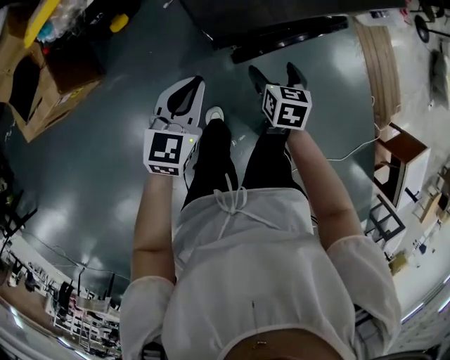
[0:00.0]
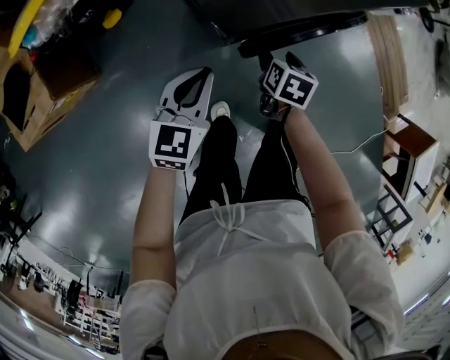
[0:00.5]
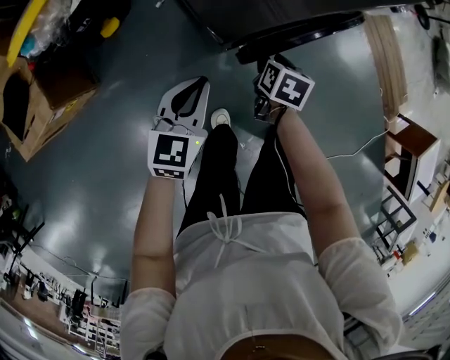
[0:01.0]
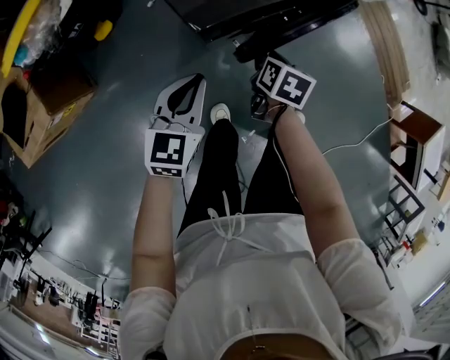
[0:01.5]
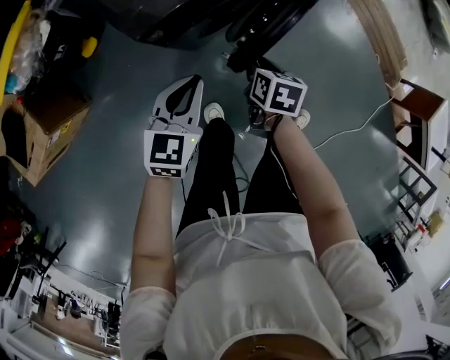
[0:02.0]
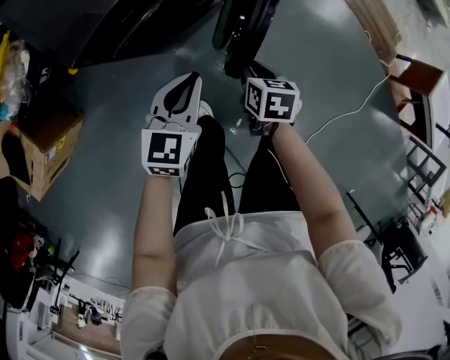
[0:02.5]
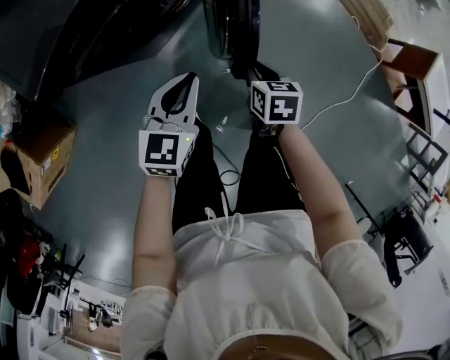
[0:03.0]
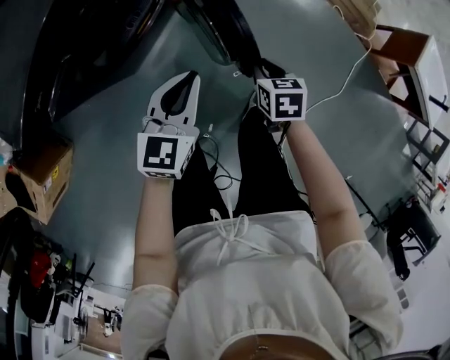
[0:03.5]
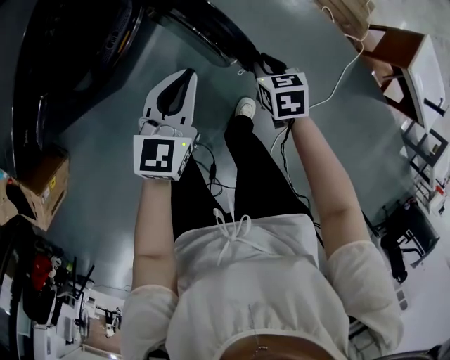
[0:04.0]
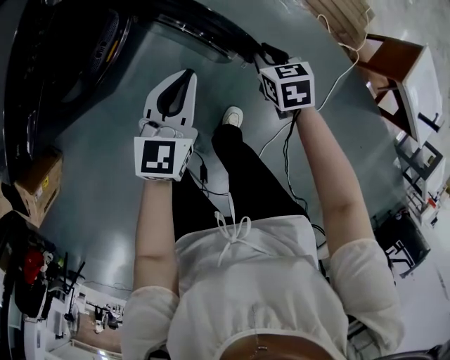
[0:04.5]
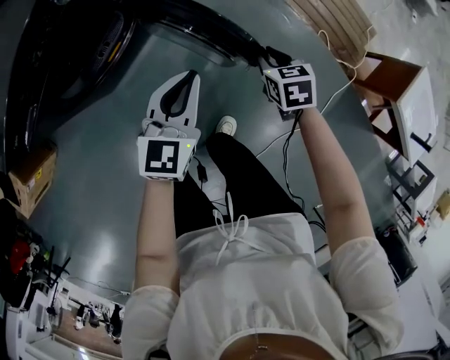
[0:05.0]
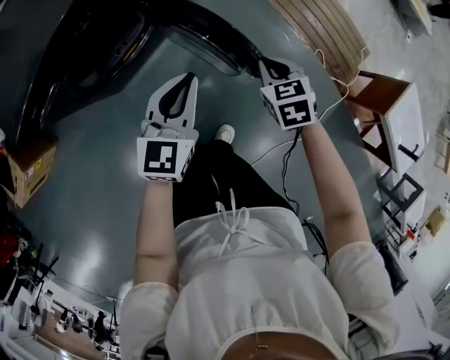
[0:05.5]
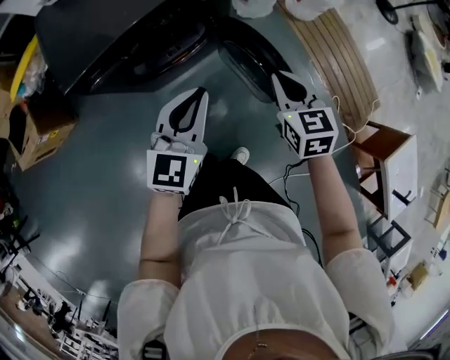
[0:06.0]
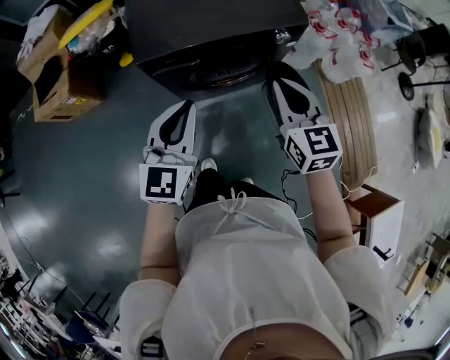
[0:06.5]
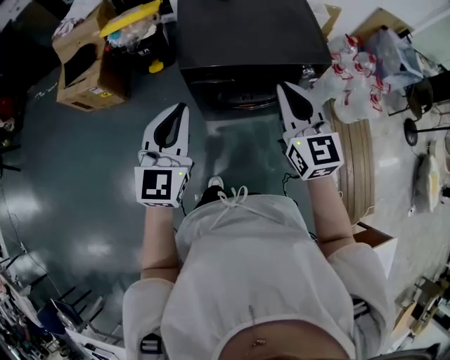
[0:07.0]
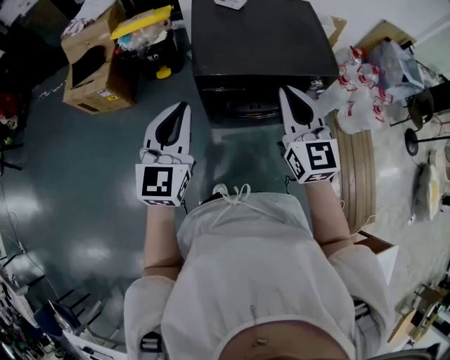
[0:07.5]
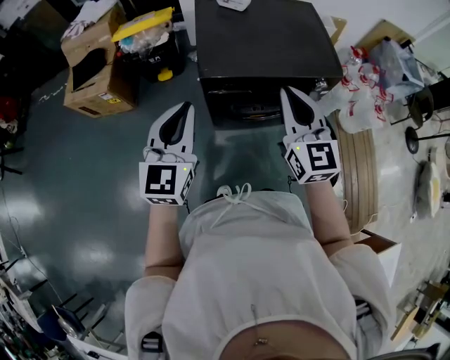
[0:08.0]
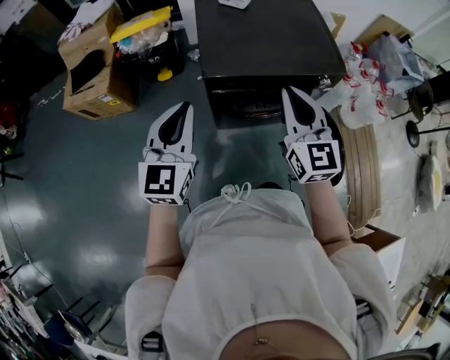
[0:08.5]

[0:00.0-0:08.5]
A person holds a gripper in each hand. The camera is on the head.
0:00.0 to 0:02.0: The right gripper travels downward and to the right by some 10 cm, rotates roughly 30 degrees, and closes its fingers, while the left gripper shifts some 15 cm to the right and downward.
0:02.0 to 0:04.0: Both grippers are carried to the right, some 50 cm.
0:04.0 to 0:06.5: Both grippers travel together upward, about 35 cm. The right gripper tips its fingers upward by about 40 degrees, while the left gripper swivels roughly 50 degrees.
0:06.5 to 0:08.5: The left gripper is displaced to the left by some 20 cm, while the right gripper goes roughly 20 cm to the left and upward.

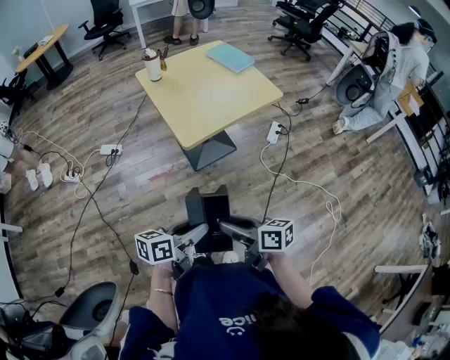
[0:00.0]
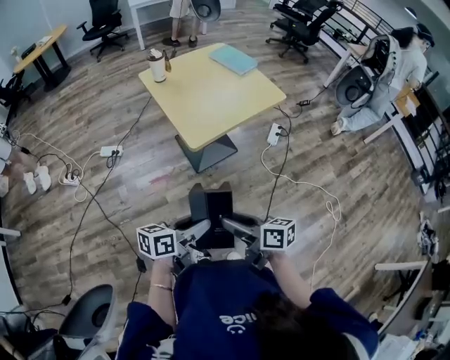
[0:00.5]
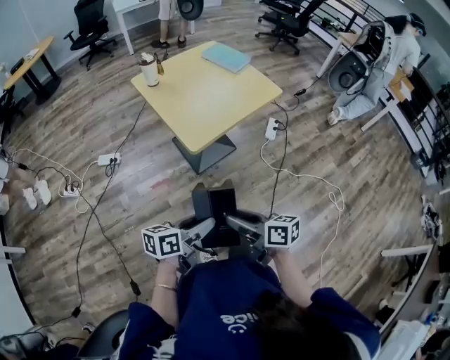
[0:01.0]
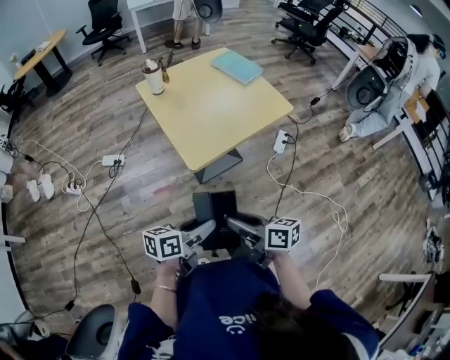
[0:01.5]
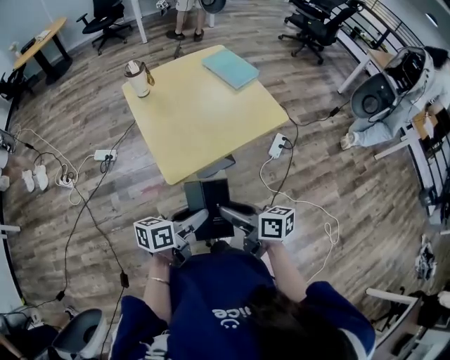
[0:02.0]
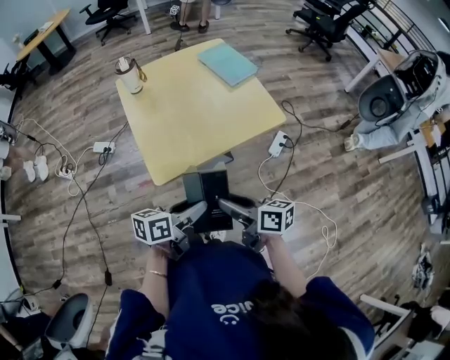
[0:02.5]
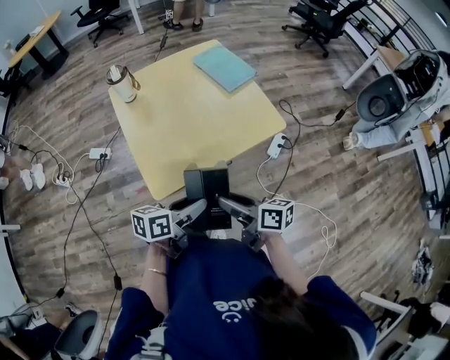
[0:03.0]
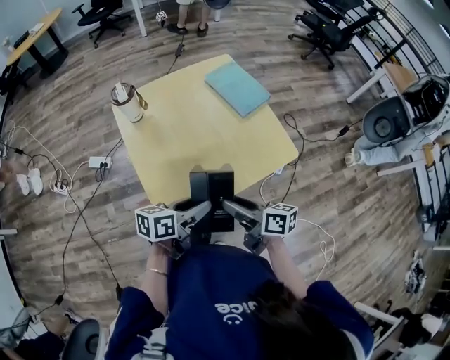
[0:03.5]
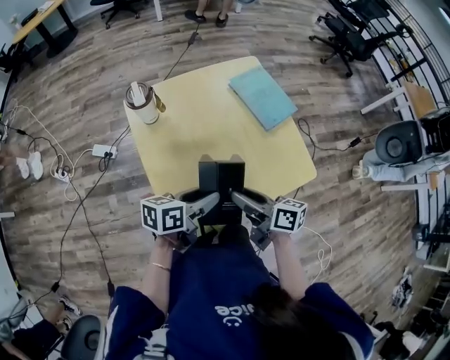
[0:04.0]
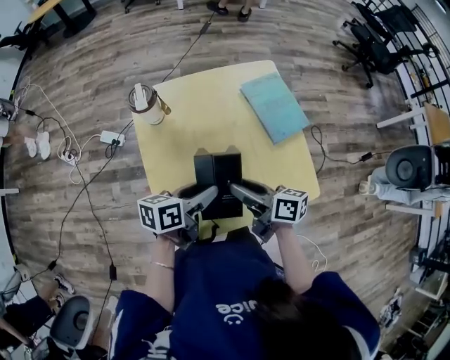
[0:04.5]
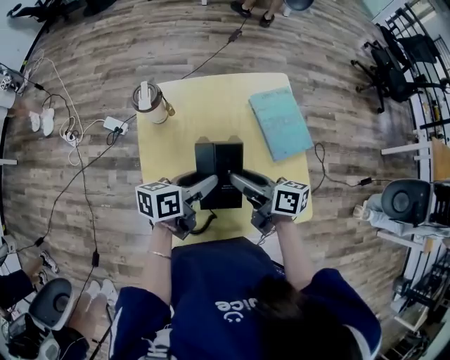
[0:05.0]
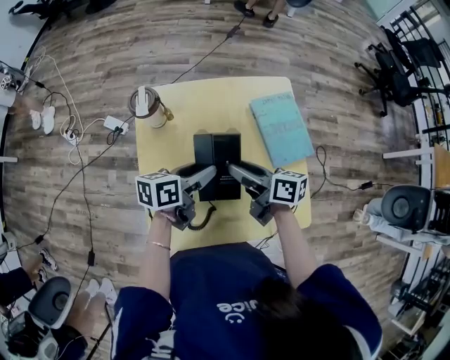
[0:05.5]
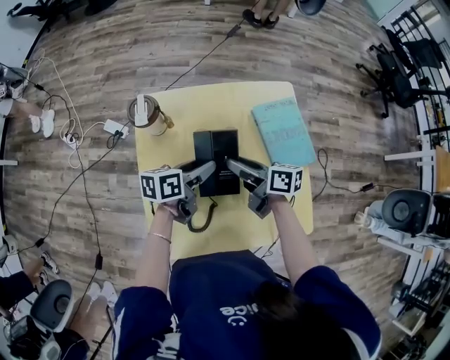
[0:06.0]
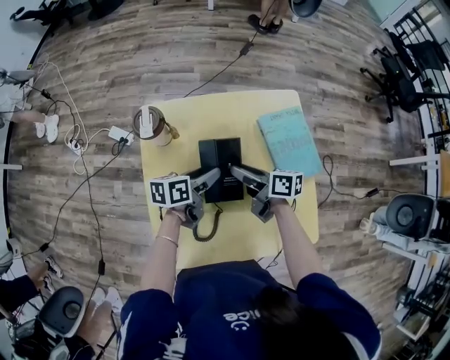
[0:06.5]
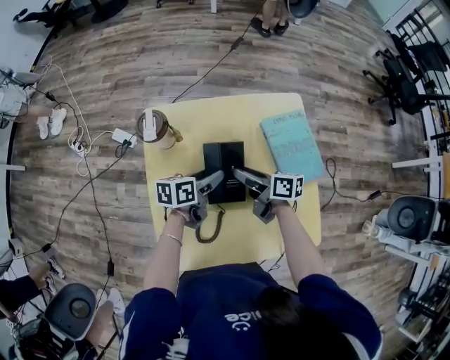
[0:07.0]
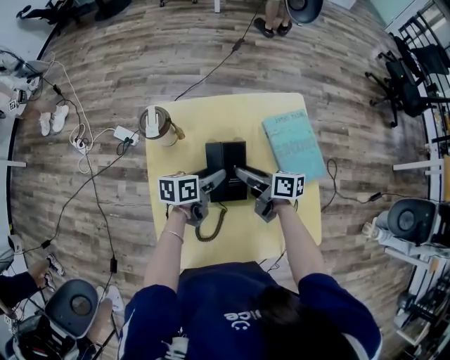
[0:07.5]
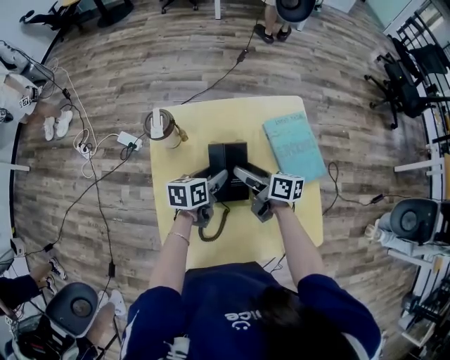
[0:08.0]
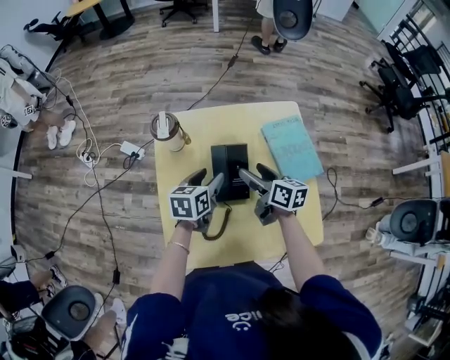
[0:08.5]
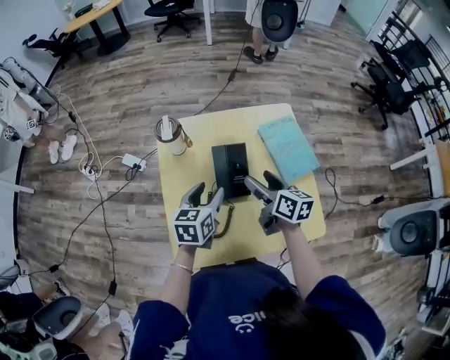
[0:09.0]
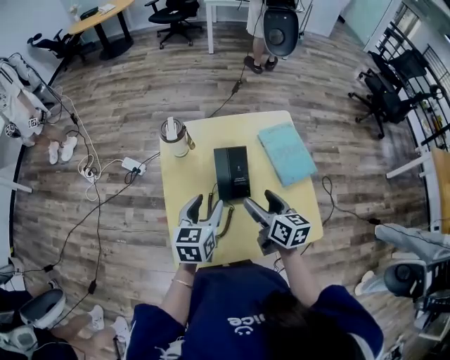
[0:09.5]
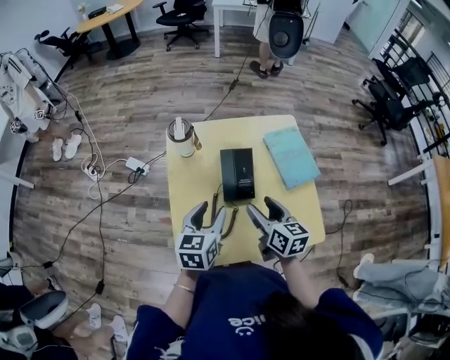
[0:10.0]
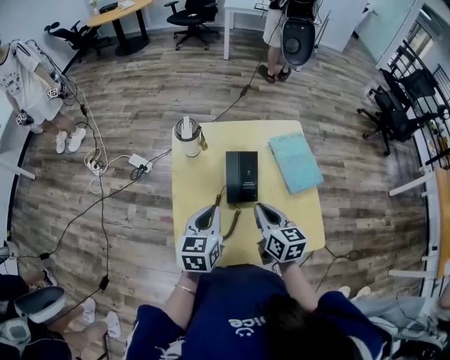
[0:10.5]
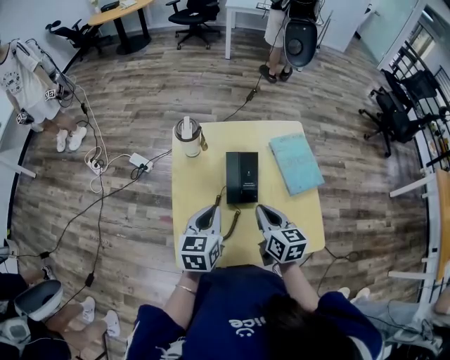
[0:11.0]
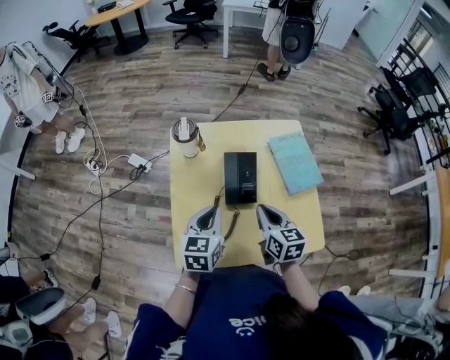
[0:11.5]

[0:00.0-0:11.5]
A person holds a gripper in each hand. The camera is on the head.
0:00.0 to 0:02.0: The grippers both shift forward by about 25 cm.
0:02.0 to 0:04.0: The grippers both shift forward by about 30 cm.
0:04.0 to 0:06.0: Both grippers travel together forward, some 20 cm. The left gripper changes its angle by about 20 degrees.
0:06.0 to 0:07.5: There are only small adjustments of the grippers.
0:07.5 to 0:09.5: The left gripper travels backward, upward and to the left by approximately 20 cm, and swivels roughly 40 degrees. The right gripper shifts some 15 cm backward and upward, changes its angle by approximately 30 degrees, and opens up.
0:09.5 to 0:11.5: The left gripper closes up, while the right gripper closes.

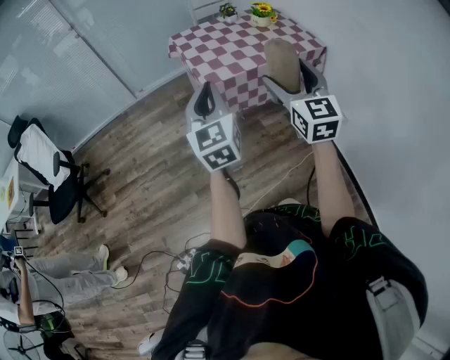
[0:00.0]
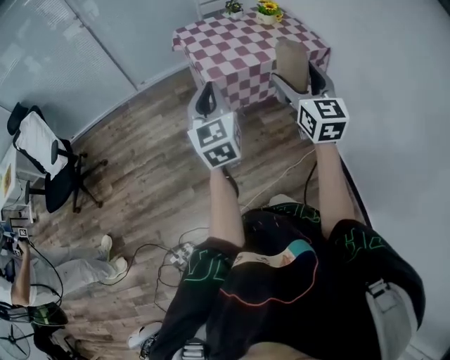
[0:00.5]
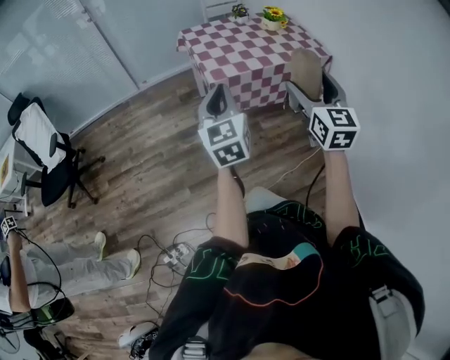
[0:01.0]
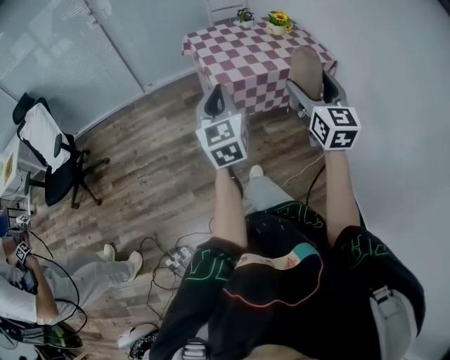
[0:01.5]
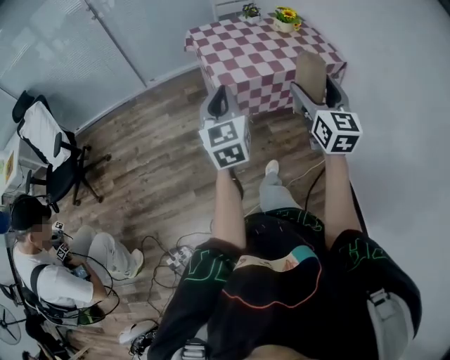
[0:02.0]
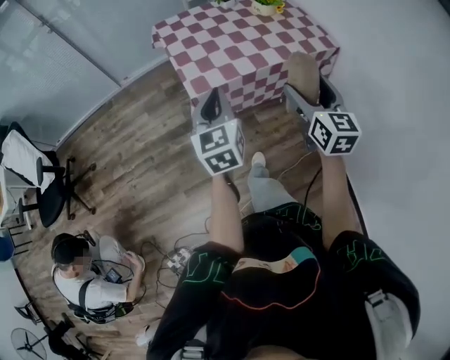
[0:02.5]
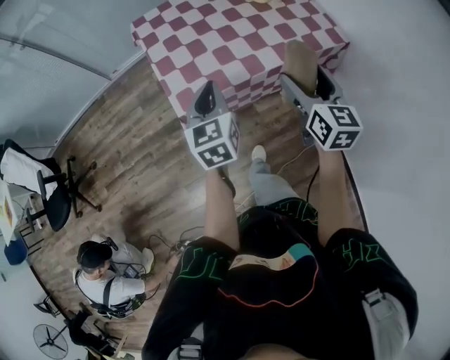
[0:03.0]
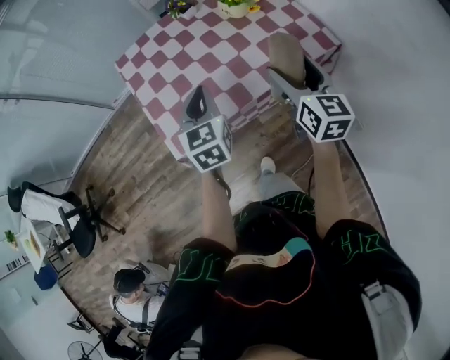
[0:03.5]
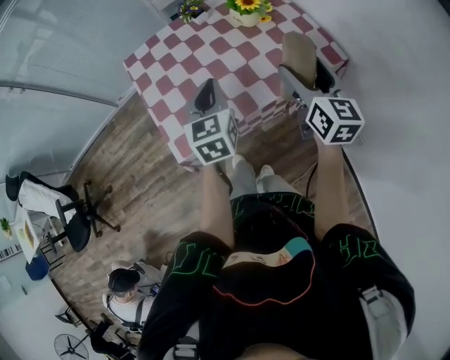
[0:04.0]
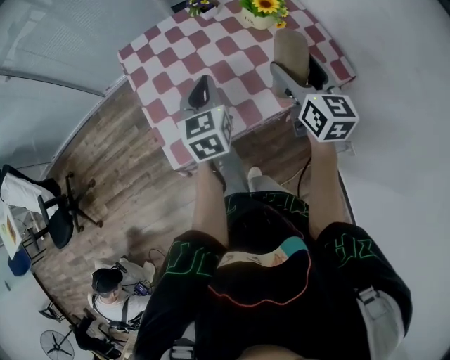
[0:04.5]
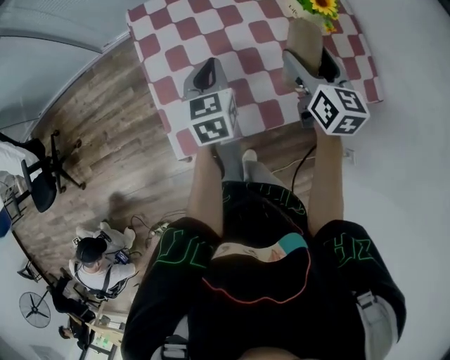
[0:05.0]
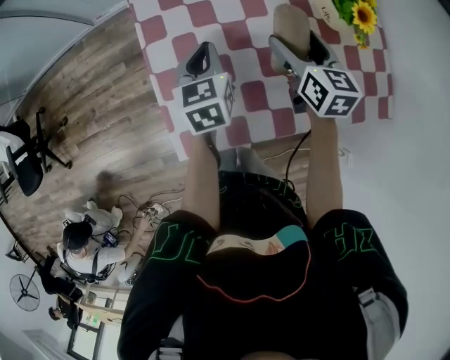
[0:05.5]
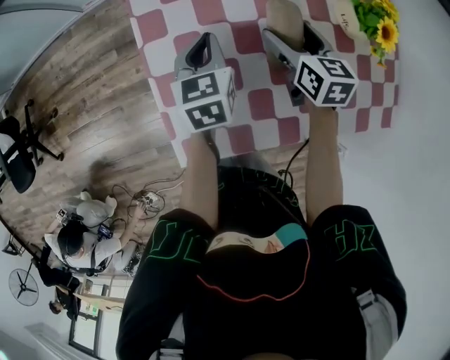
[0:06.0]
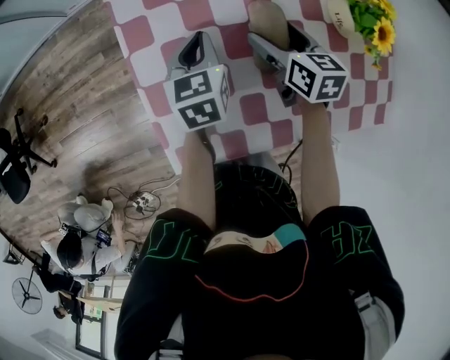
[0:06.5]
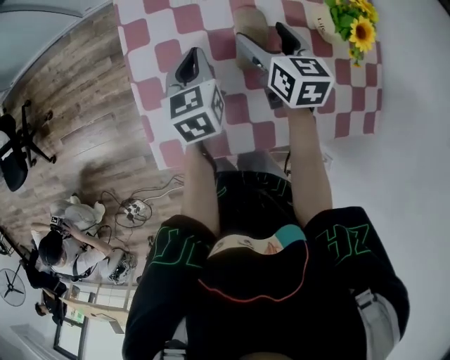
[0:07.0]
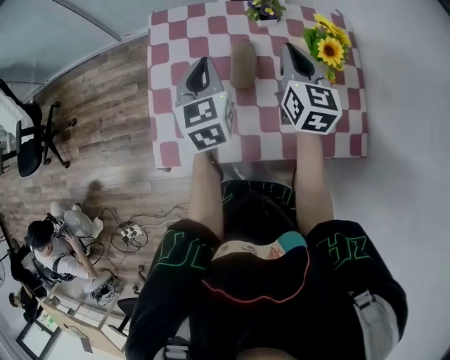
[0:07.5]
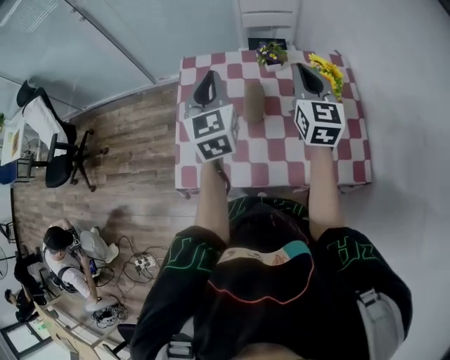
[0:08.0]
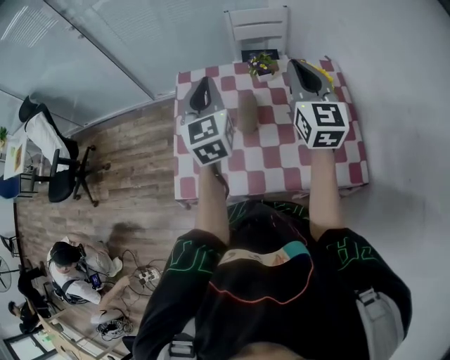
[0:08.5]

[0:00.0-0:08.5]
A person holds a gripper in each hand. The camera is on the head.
0:00.0 to 0:02.0: The left gripper shifts by some 5 cm. Meanwhile the right gripper shifts by about 5 cm.
0:02.0 to 0:04.0: The pair of grippers is taken forward and to the right, some 40 cm.
0:04.0 to 0:06.5: The two grippers go some 35 cm forward, downward and to the left. The left gripper turns by roughly 30 degrees, while the right gripper tips its fingers downward by approximately 30 degrees.
0:06.5 to 0:08.5: Both grippers move upward, approximately 30 cm. The right gripper tips its fingers upward by roughly 40 degrees, and closes its fingers, while the left gripper tilts its fingers some 30 degrees upward.
